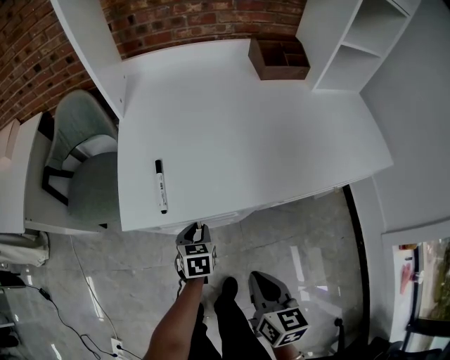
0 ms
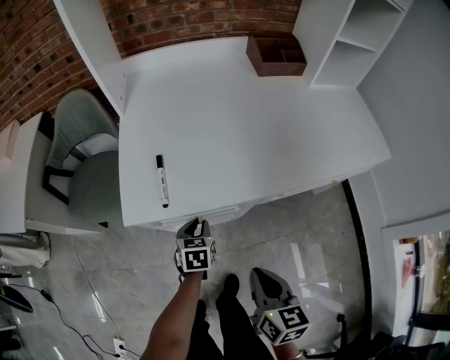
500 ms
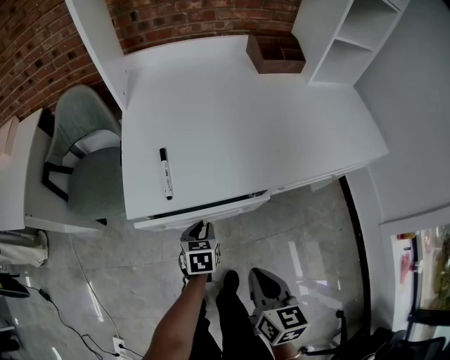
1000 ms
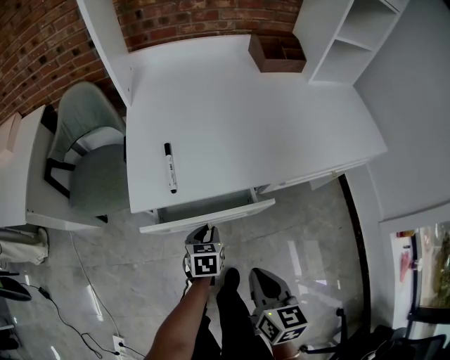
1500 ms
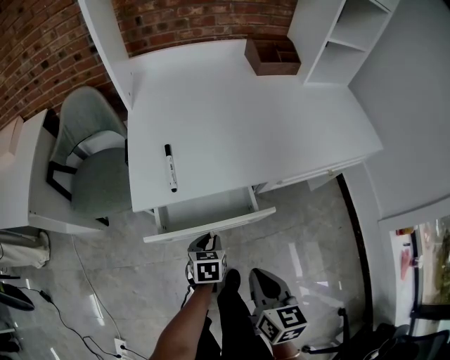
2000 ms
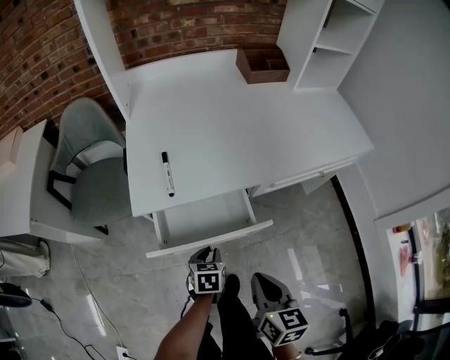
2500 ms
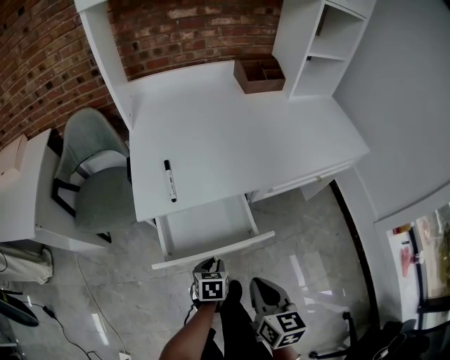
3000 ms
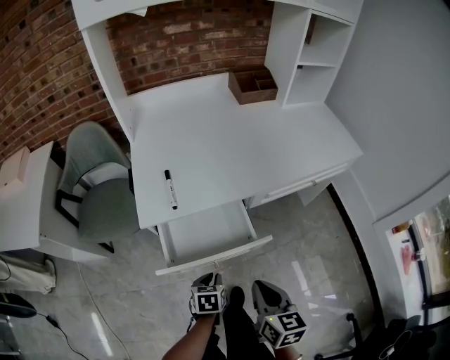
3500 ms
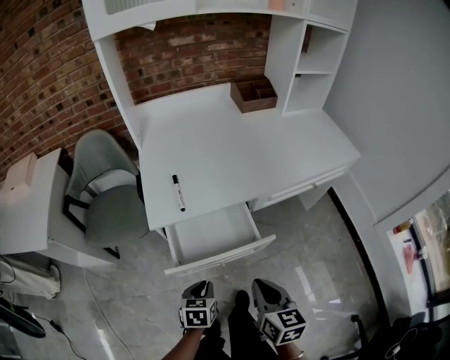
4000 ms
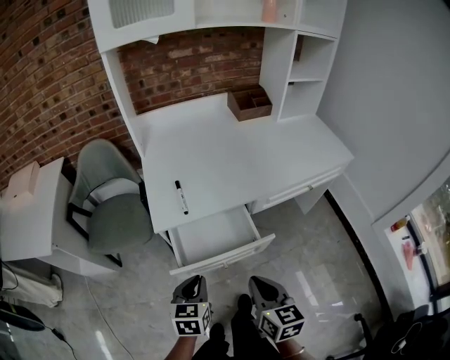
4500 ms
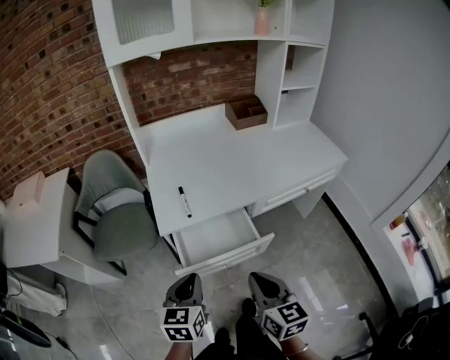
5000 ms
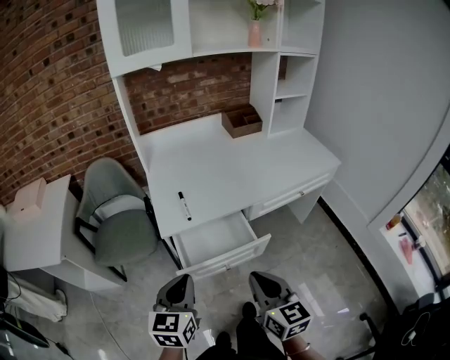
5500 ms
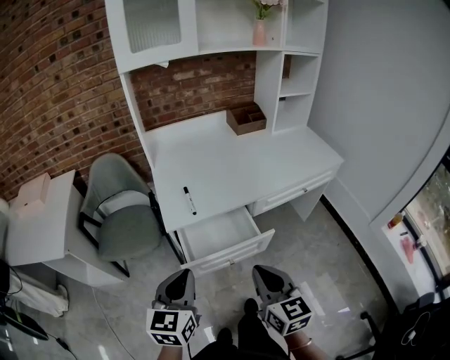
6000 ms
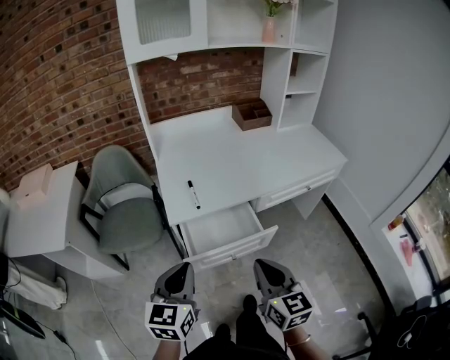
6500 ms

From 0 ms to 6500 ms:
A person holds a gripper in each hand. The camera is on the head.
From 0 ms to 2000 ms: The left gripper shifts some 10 cm backward, while the right gripper is displaced backward by roughly 5 cm.
From 2000 ms to 4500 ms: The left gripper shifts approximately 20 cm upward and backward, while the right gripper shifts some 10 cm upward and backward.
From 4500 ms to 6500 ms: The left gripper moves upward, approximately 15 cm, and turns by some 20 degrees, while the right gripper heads upward, covering some 10 cm.

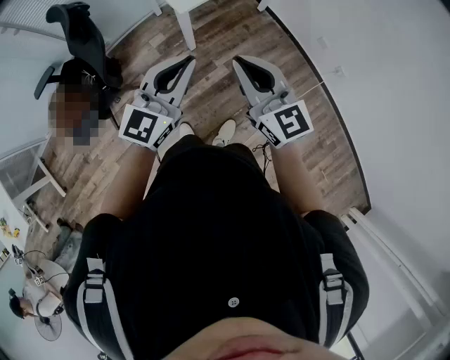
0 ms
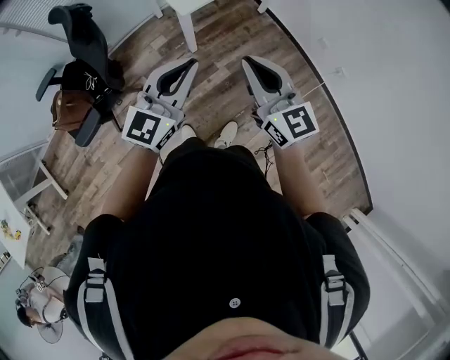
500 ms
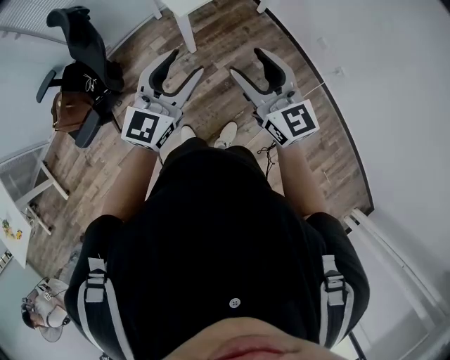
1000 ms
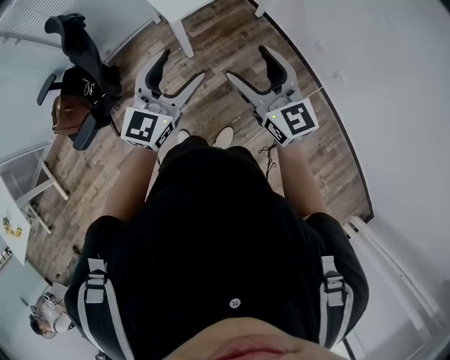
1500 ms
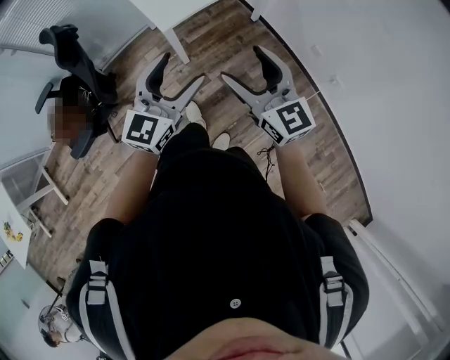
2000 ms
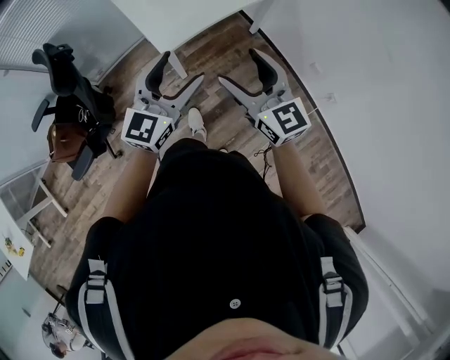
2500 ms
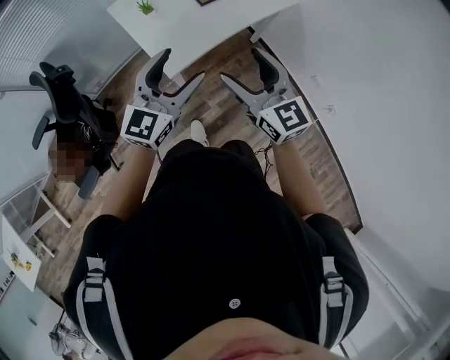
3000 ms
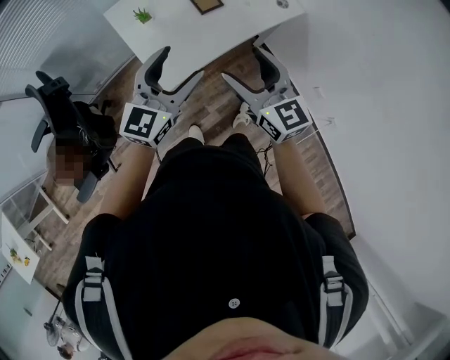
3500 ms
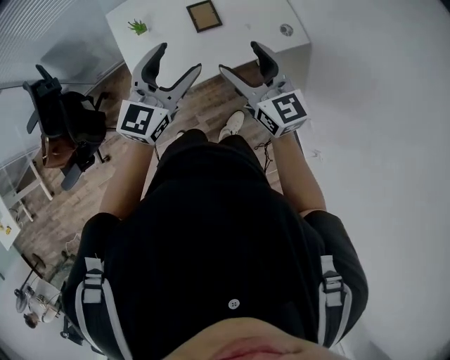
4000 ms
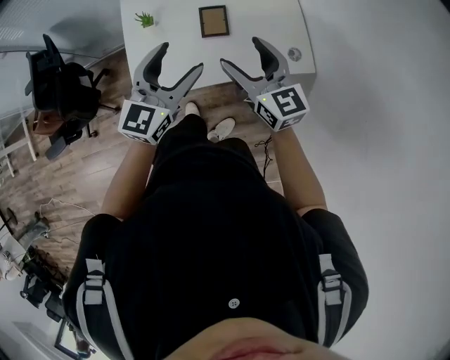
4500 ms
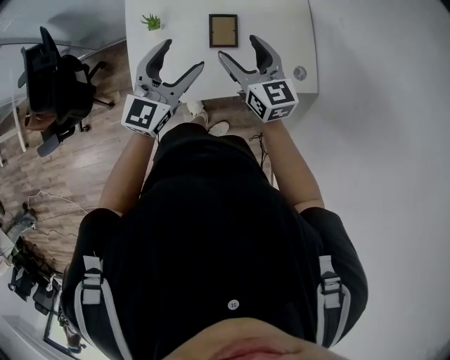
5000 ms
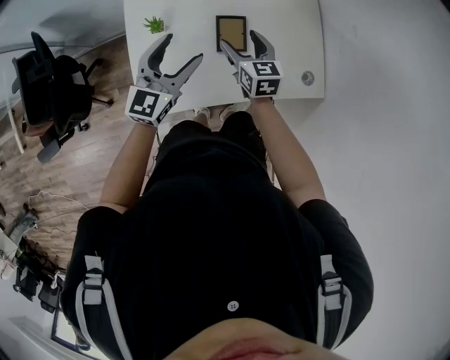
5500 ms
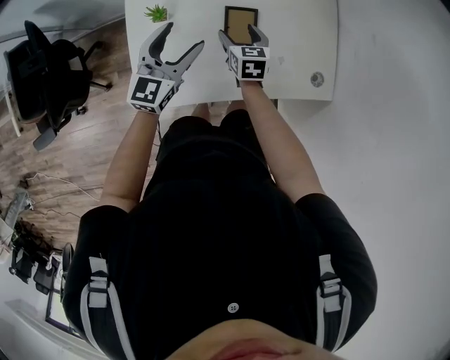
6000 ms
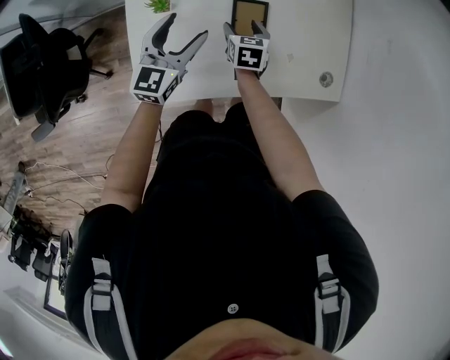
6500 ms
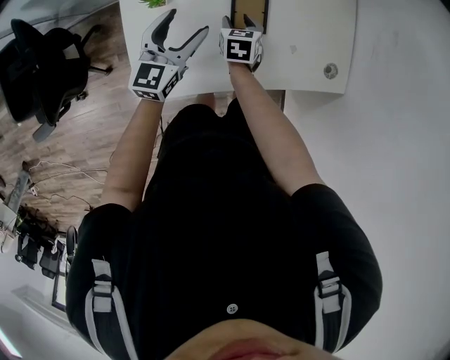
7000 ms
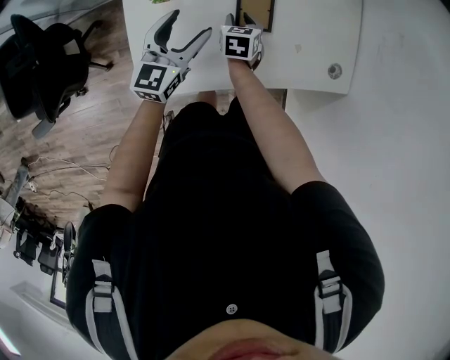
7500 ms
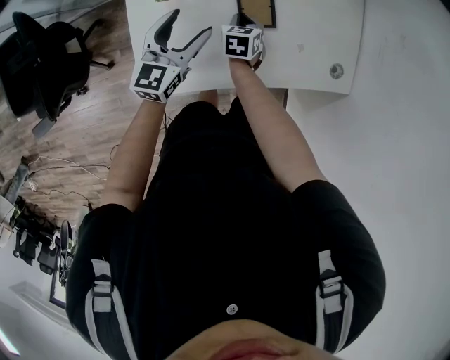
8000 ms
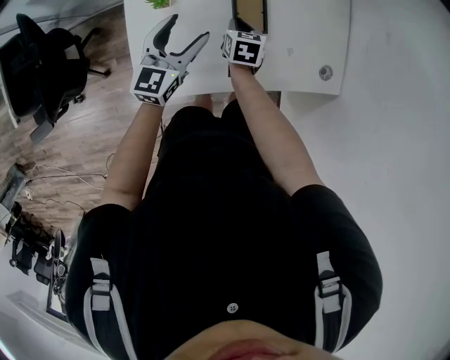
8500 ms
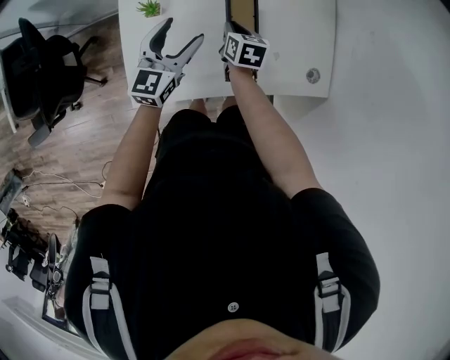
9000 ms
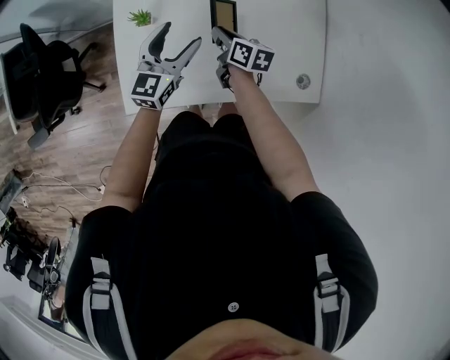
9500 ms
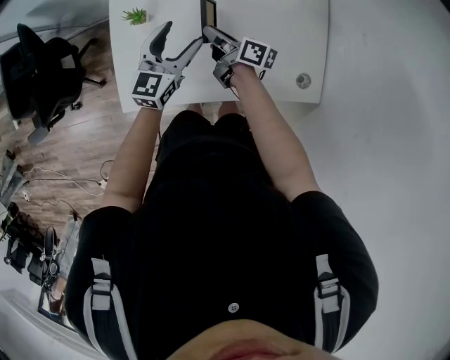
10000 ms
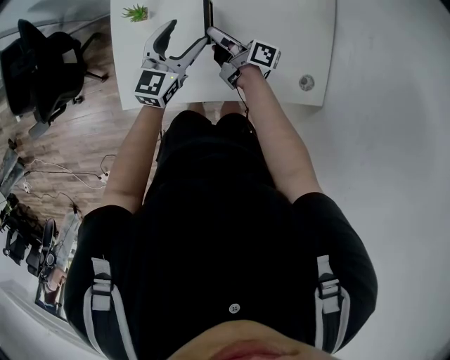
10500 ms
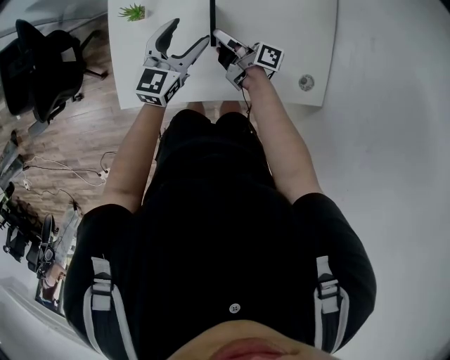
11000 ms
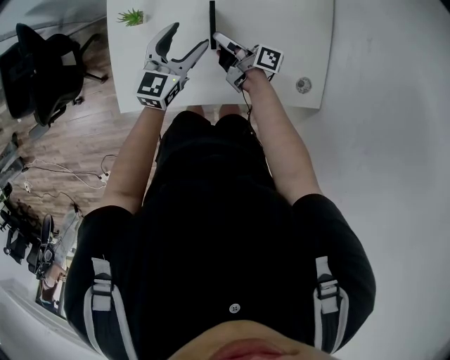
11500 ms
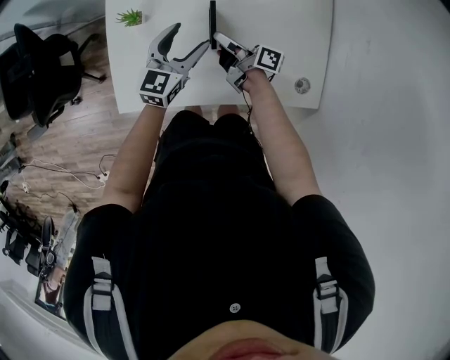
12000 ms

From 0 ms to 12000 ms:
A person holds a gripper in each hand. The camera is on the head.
From 0 ms to 2000 ms: The grippers both shift to the right and forward by roughly 10 cm. The left gripper opens; the right gripper opens.
From 2000 ms to 4000 ms: Both grippers are carried forward, approximately 50 cm.
From 4000 ms to 6000 ms: The left gripper is displaced forward and downward by about 30 cm, and changes its angle by some 20 degrees. The right gripper shifts some 40 cm downward and forward, and tips its fingers downward by about 40 degrees.
From 6000 ms to 8000 ms: The right gripper shifts approximately 10 cm downward, and closes up. Meanwhile the left gripper is displaced downward by approximately 5 cm.
From 8000 ms to 10000 ms: The right gripper is displaced upward by approximately 10 cm, and points its fingers some 40 degrees further upward. The left gripper travels to the right by some 10 cm.
From 10000 ms to 12000 ms: The left gripper changes place by approximately 5 cm.

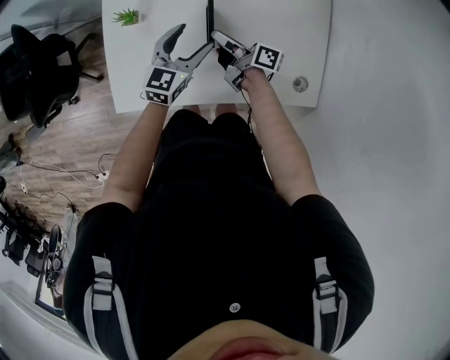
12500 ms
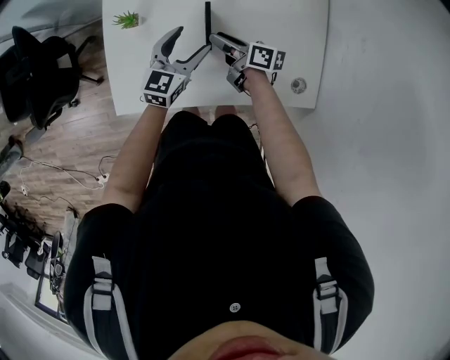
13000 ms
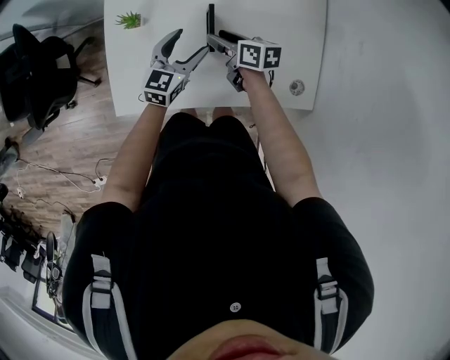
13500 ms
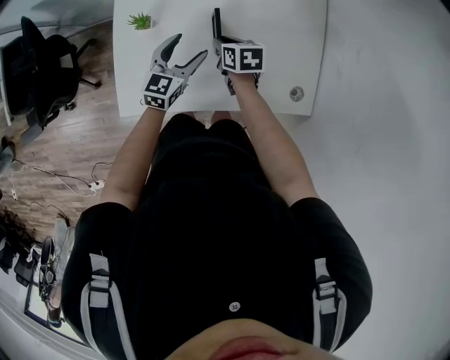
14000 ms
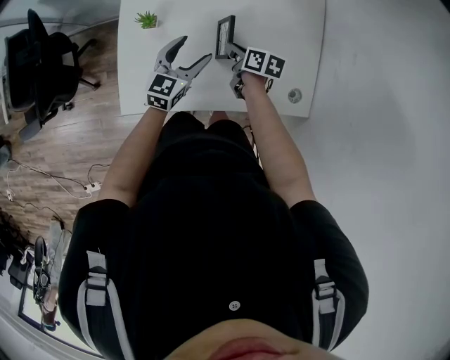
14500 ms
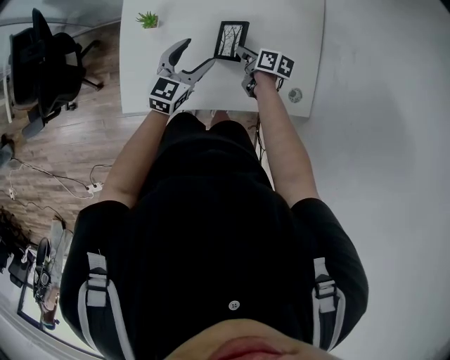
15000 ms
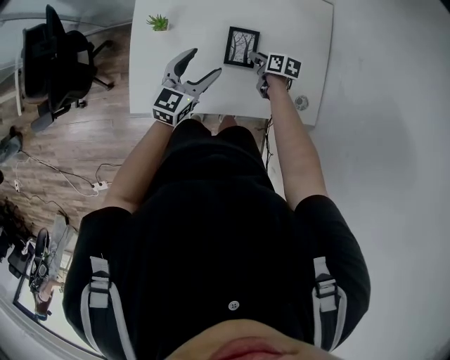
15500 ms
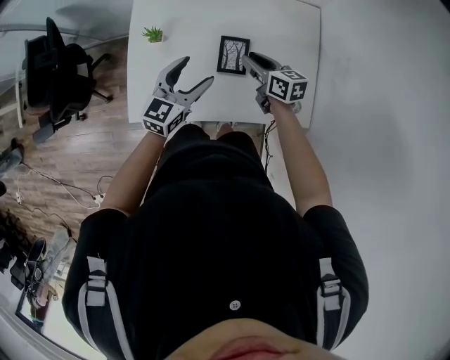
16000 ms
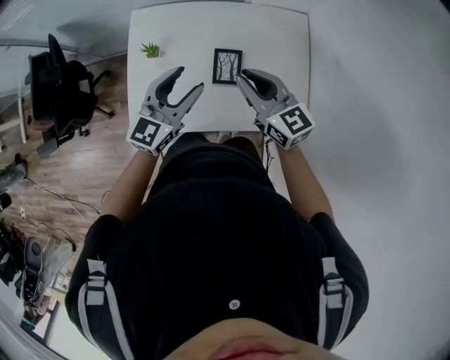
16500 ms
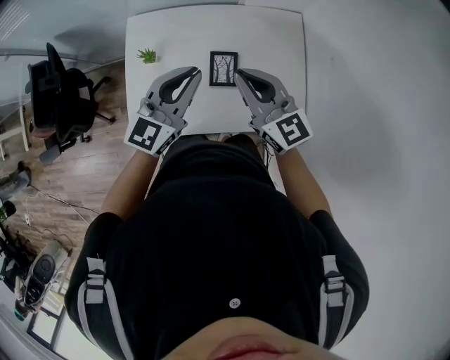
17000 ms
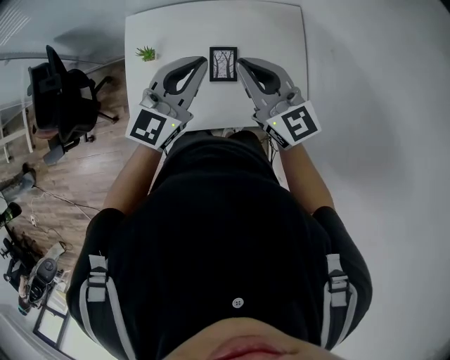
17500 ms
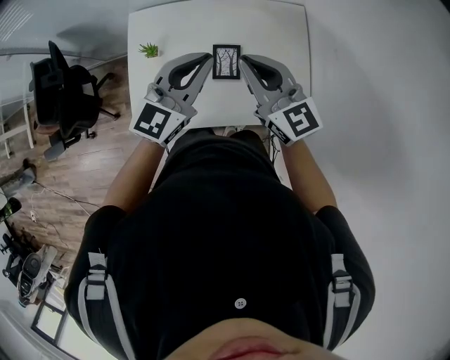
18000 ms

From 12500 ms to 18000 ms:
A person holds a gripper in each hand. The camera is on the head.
From 12500 ms to 14500 ms: The left gripper changes place by approximately 5 cm. The right gripper points its fingers about 40 degrees further downward, and opens, then closes once more.
From 14500 ms to 16000 ms: The grippers both shift upward by approximately 10 cm. The right gripper turns by approximately 30 degrees.
From 16000 ms to 18000 ms: Both grippers travel together upward, approximately 20 cm. The right gripper swivels roughly 40 degrees, while the left gripper closes up.

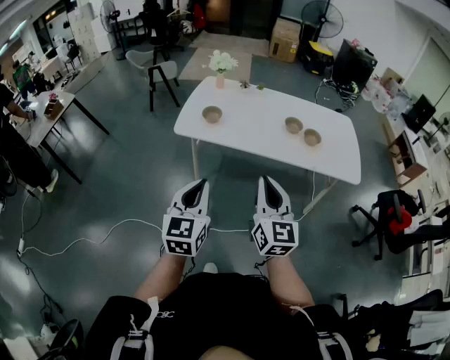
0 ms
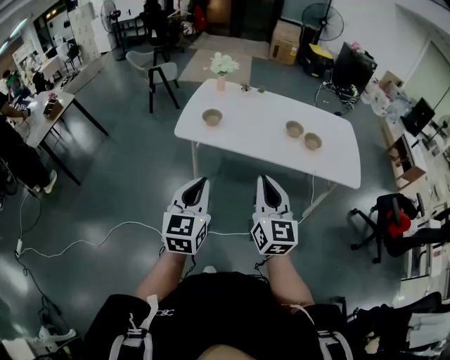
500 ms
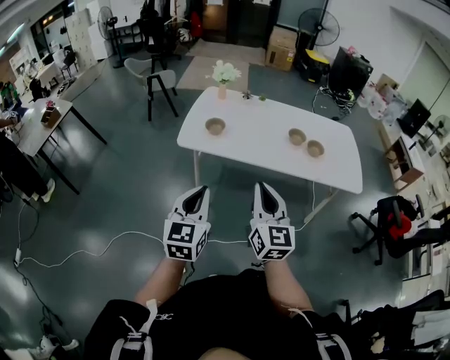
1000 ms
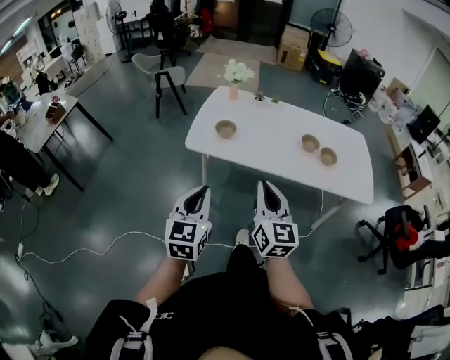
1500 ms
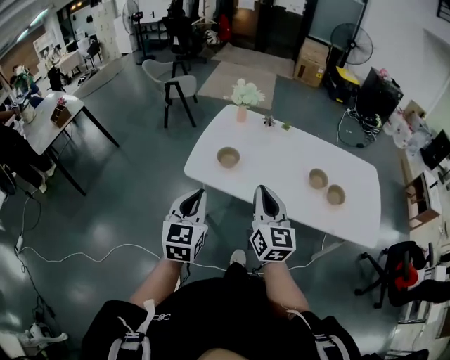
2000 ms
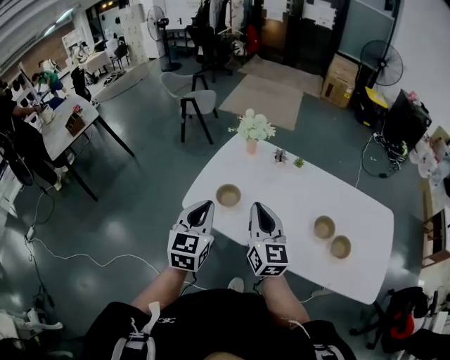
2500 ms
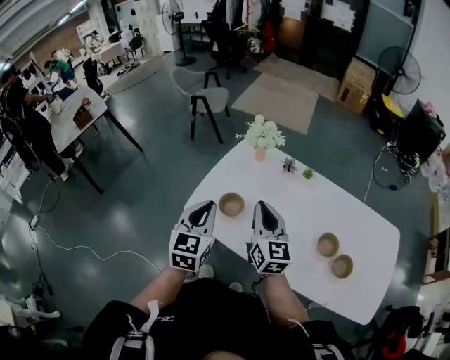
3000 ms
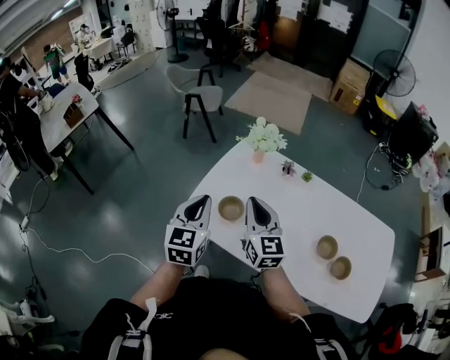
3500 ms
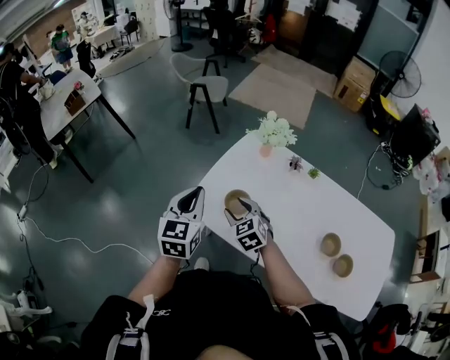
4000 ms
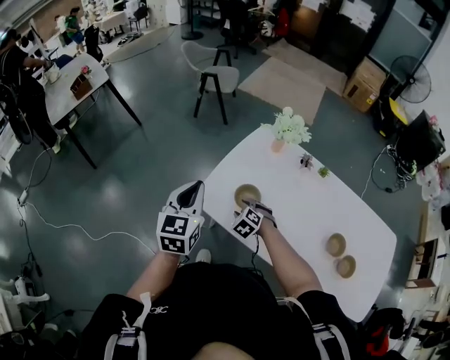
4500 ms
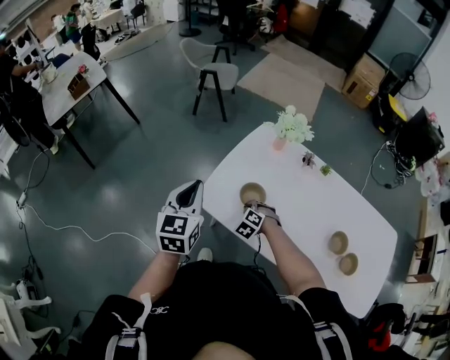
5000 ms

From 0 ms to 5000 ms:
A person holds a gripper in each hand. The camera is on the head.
From 0 ms to 2500 ms: Both grippers are carried forward, roughly 50 cm.
From 2500 ms to 5000 ms: The left gripper heads to the left and forward, covering about 20 cm; the right gripper moves downward and forward, roughly 35 cm, angles its fingers downward, by roughly 60 degrees, and opens, then closes again.
